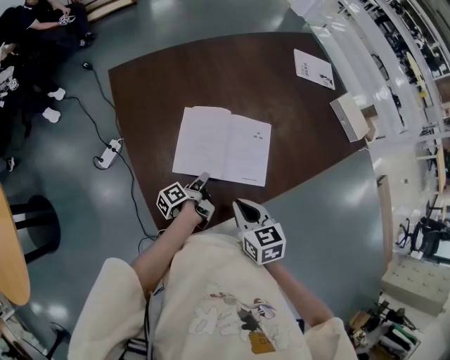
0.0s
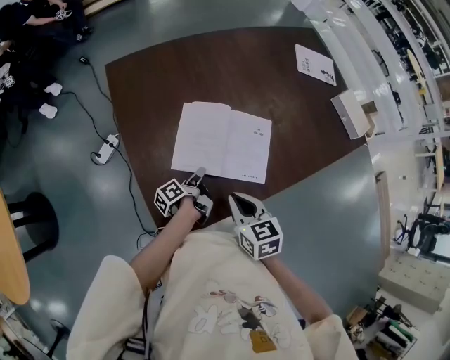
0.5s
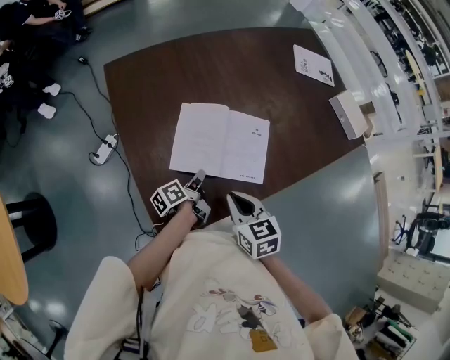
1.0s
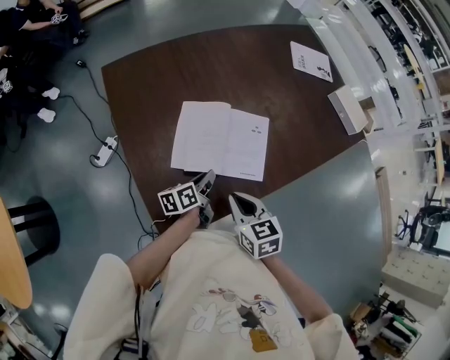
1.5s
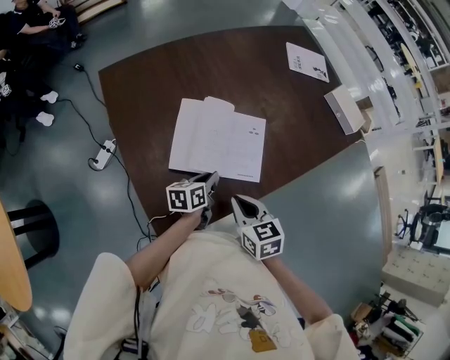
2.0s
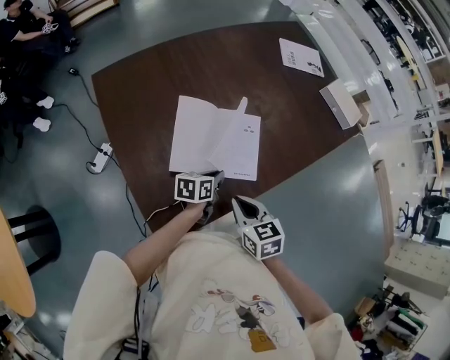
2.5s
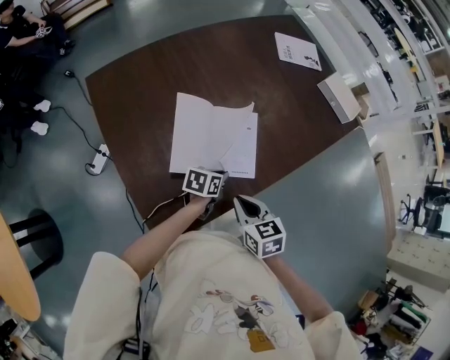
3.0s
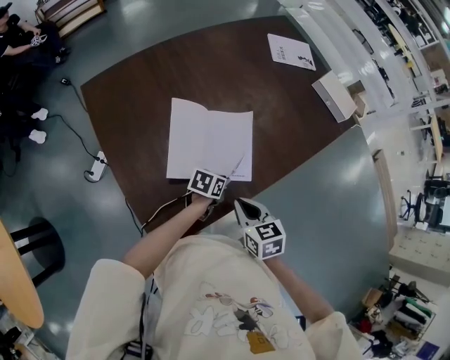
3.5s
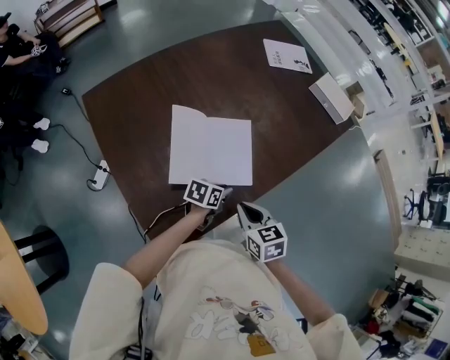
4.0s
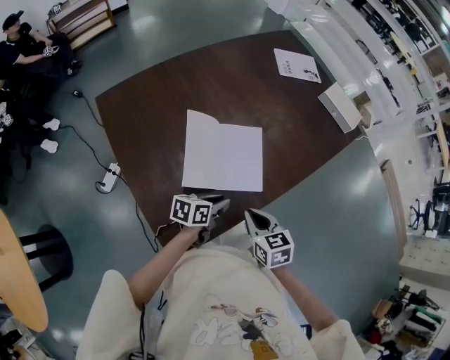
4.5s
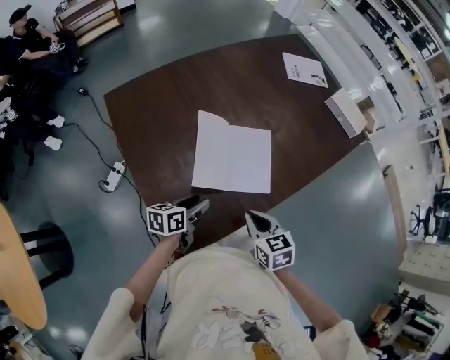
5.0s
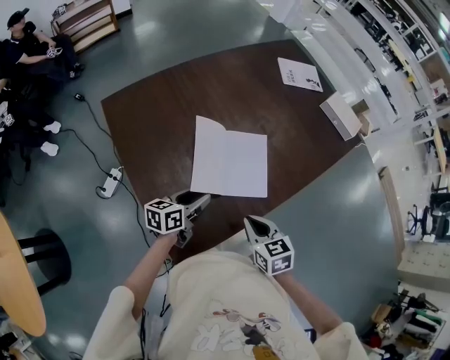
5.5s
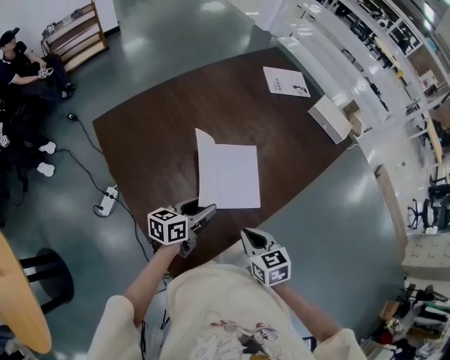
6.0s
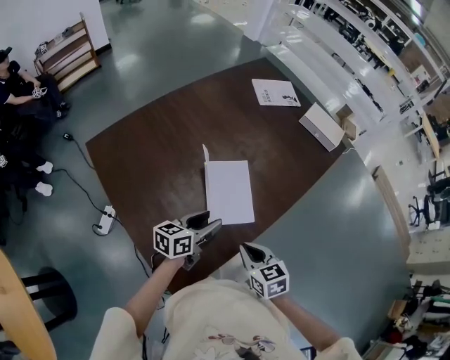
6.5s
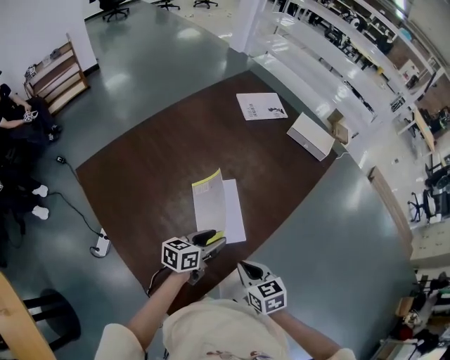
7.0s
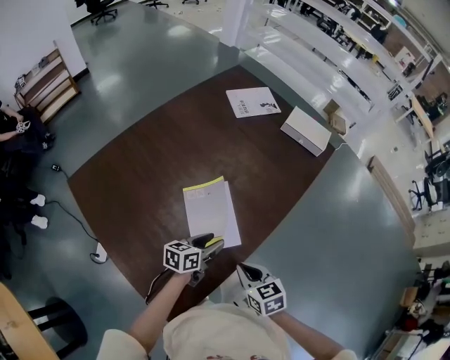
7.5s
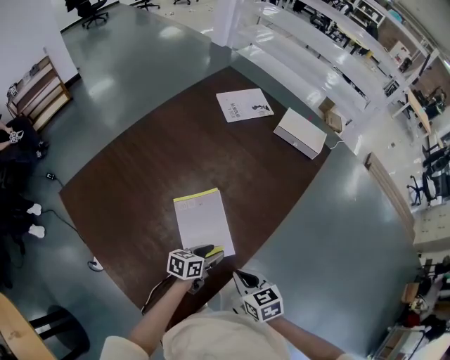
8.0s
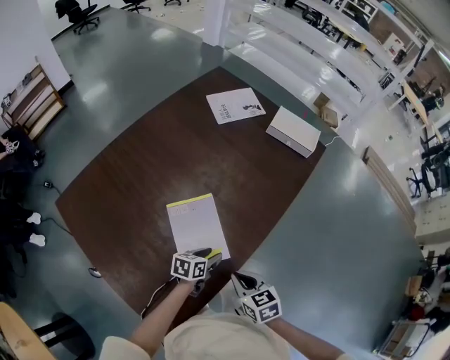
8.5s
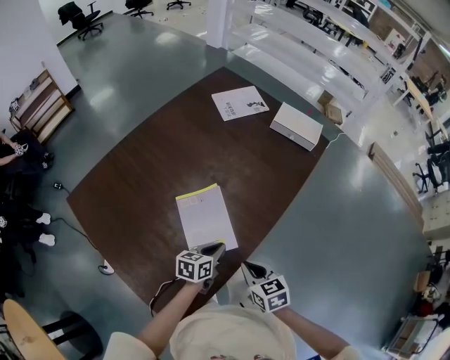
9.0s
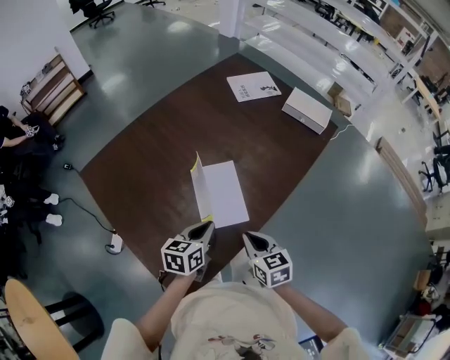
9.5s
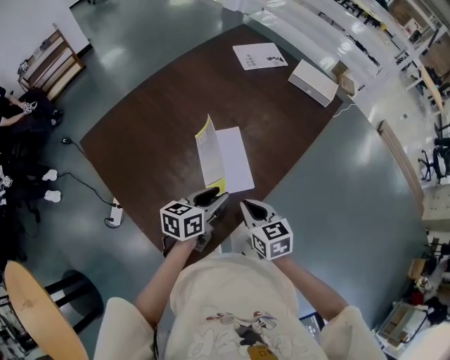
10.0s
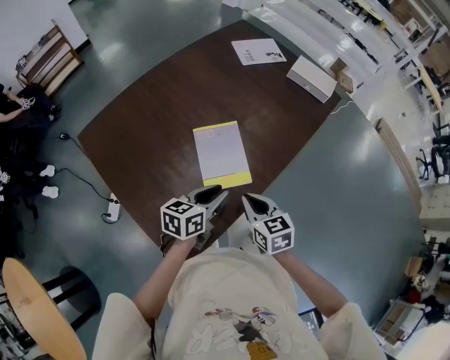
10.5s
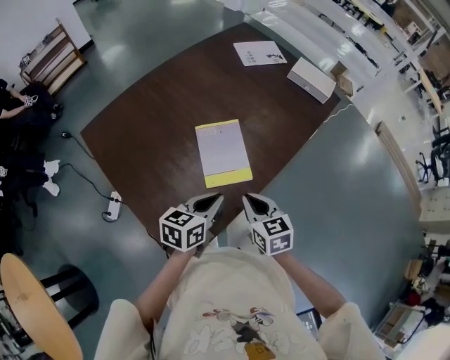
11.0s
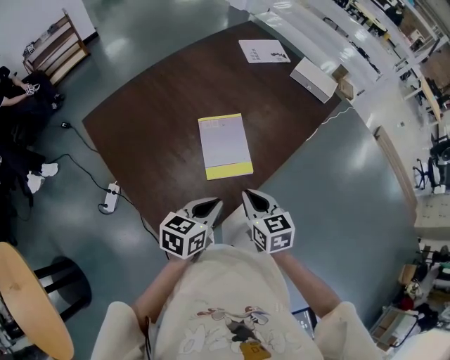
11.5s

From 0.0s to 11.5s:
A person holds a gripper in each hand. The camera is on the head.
From 0.0s to 2.0s: The left gripper moves to the right, roughly 5 cm, and rolls clockwise, seen from behind, by about 50 degrees.
From 2.0s to 4.0s: The right gripper moves to the right, about 5 cm, while the left gripper shifts some 10 cm to the right, and swivels about 30 degrees.
From 4.0s to 6.0s: The left gripper shifts about 15 cm to the left and upward, changes its angle by approximately 30 degrees, and opens up.
From 6.0s to 7.5s: The right gripper goes approximately 5 cm to the right, while the left gripper shifts some 15 cm to the right, forward and downward.
From 7.5s to 9.5s: The left gripper moves upward, approximately 10 cm, and closes its fingers.
From 9.5s to 11.5s: The right gripper goes roughly 5 cm backward, while the left gripper heads backward, covering about 10 cm, and opens and closes again.

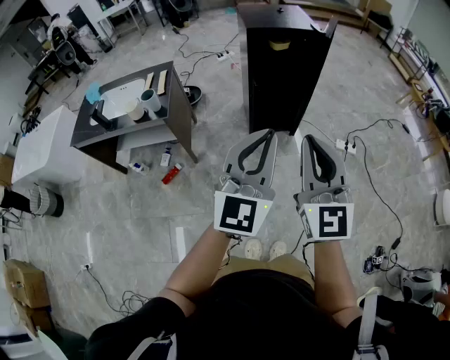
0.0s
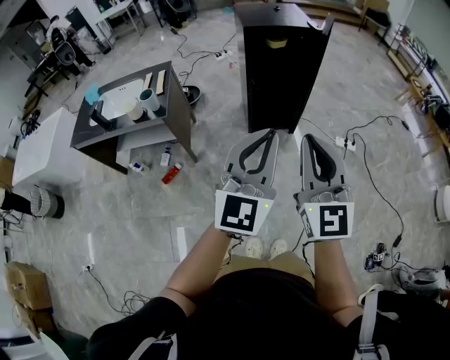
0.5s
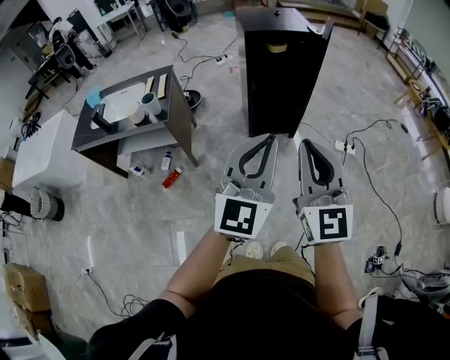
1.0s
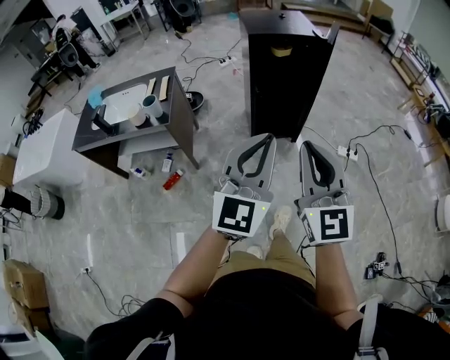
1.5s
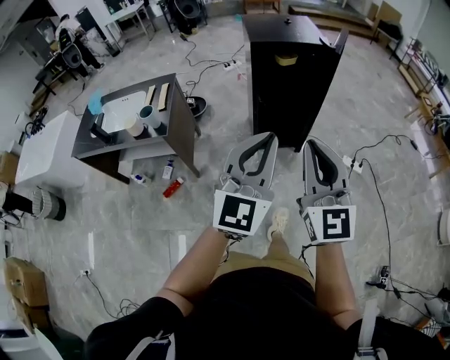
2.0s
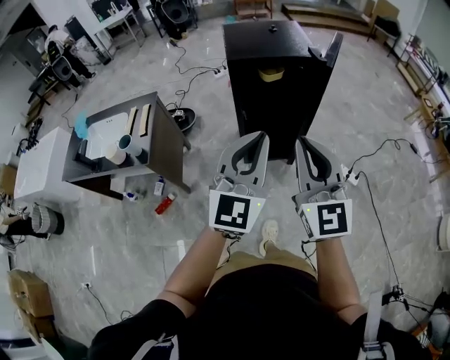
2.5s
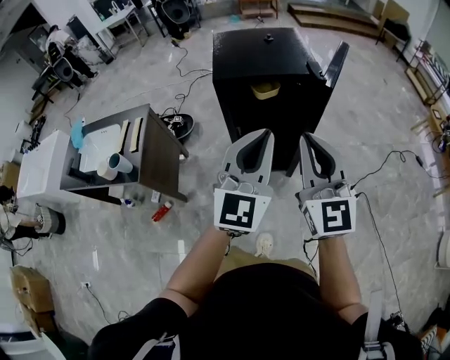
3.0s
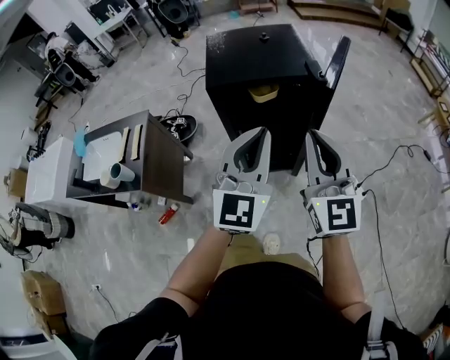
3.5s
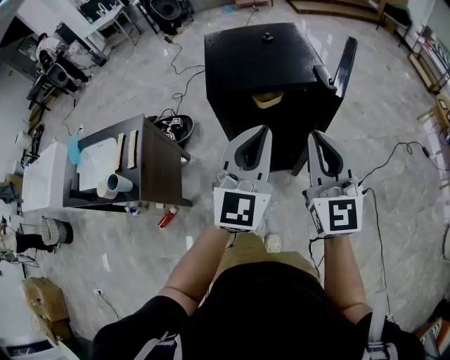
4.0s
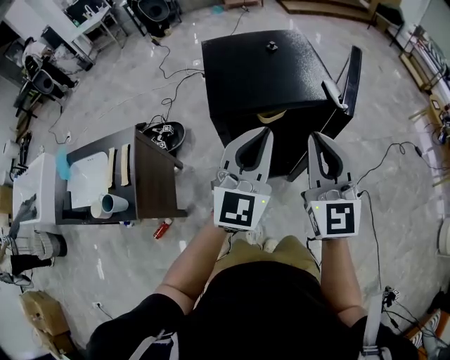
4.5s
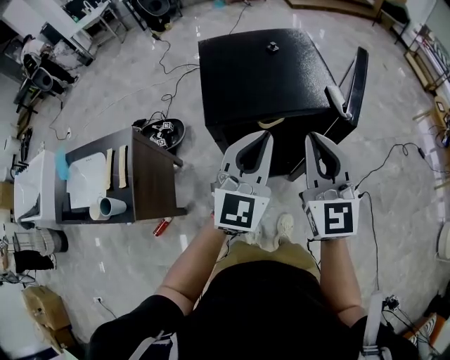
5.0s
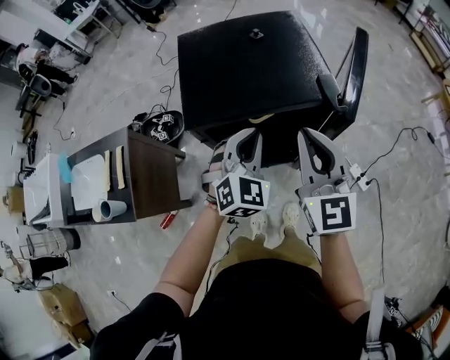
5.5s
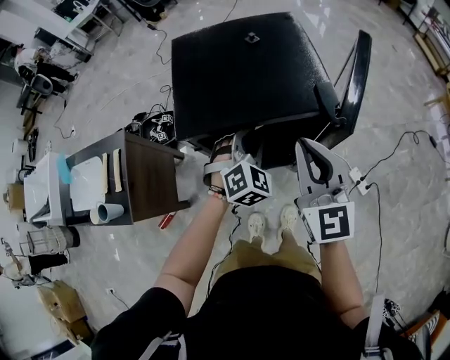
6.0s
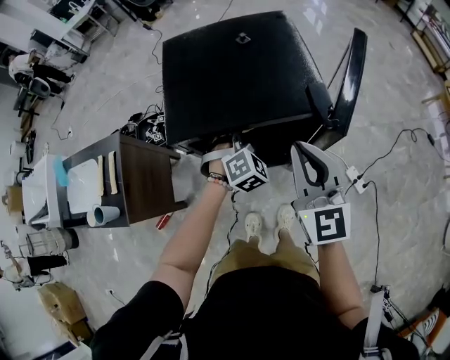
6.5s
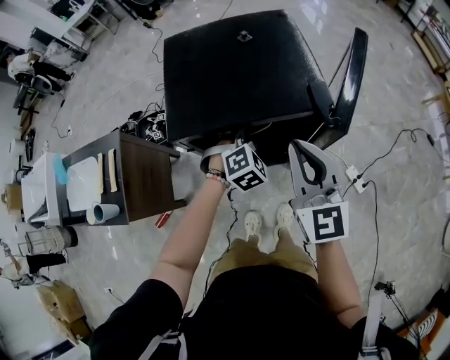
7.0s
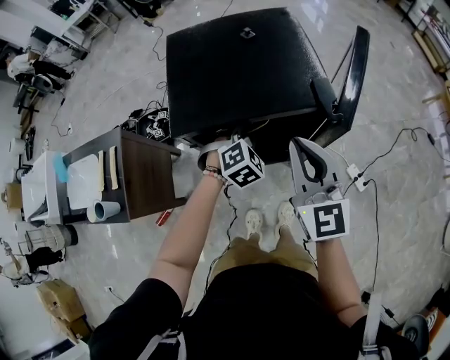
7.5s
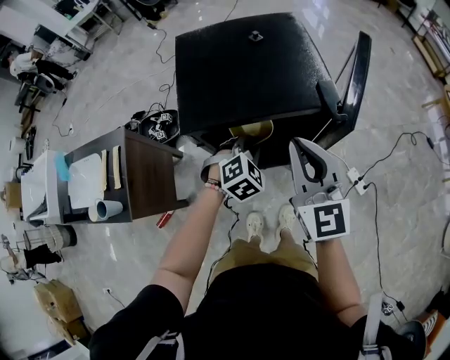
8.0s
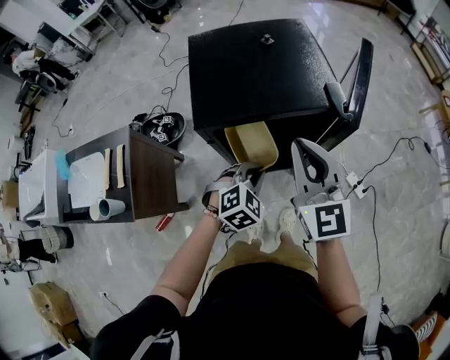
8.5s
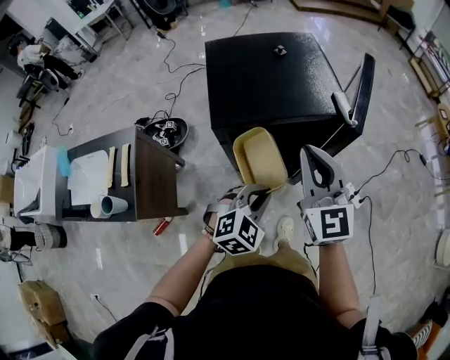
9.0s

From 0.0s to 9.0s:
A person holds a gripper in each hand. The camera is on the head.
From 0.0s to 2.0s: The two grippers go about 10 cm forward.
From 2.0s to 4.5s: Both grippers are carried forward, roughly 60 cm.
From 4.5s to 7.0s: The left gripper heads downward and forward, covering about 30 cm, angles its fingers downward, by some 50 degrees, and opens, then closes again. The right gripper travels forward, downward and to the right by some 15 cm.
From 7.0s to 9.0s: The right gripper is displaced to the left and backward by some 10 cm; the left gripper travels backward by about 20 cm, and turns by approximately 20 degrees.

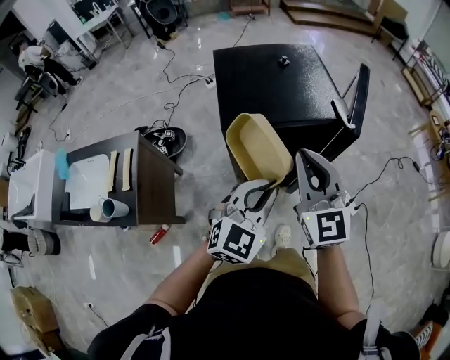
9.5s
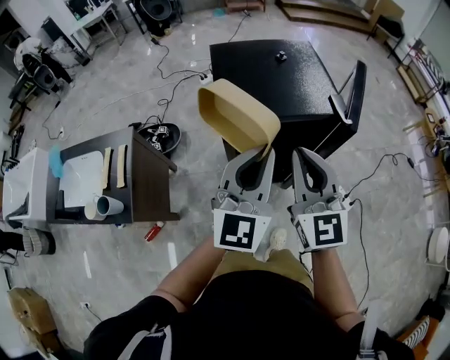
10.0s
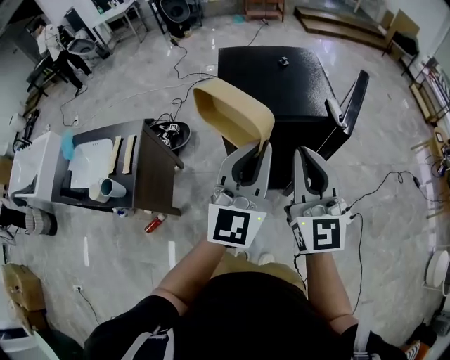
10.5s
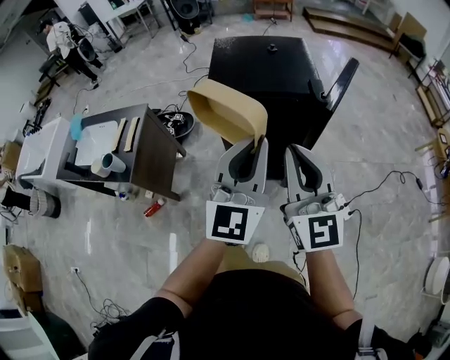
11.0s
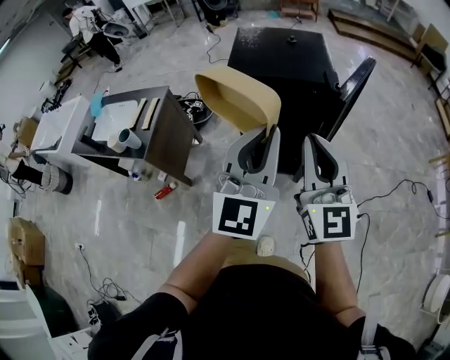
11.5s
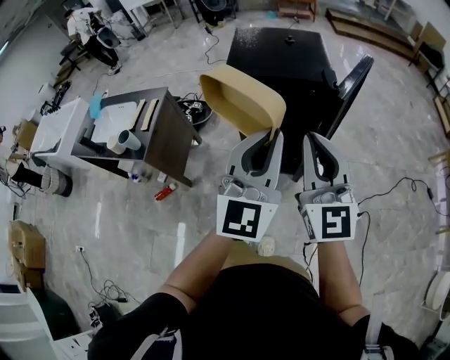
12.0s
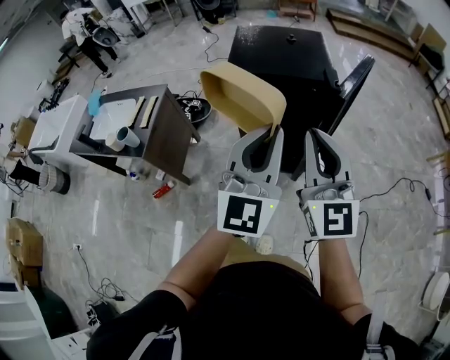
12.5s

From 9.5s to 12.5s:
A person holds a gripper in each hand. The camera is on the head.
From 9.5s to 11.0s: The right gripper moves backward and to the right, approximately 20 cm. The left gripper moves upward, backward and to the right, some 20 cm, and swivels approximately 40 degrees.
From 11.0s to 12.5s: The left gripper goes roughly 5 cm backward.

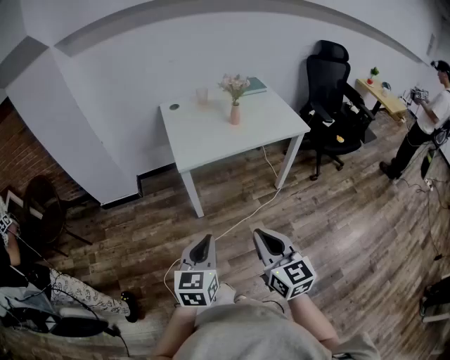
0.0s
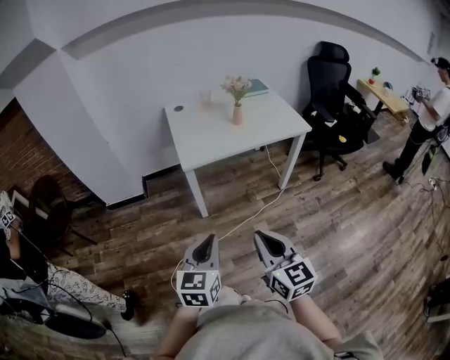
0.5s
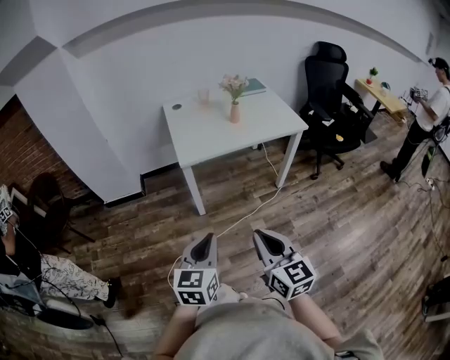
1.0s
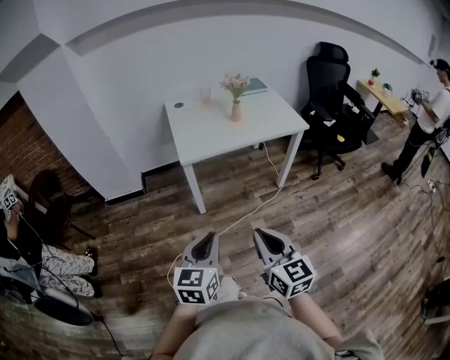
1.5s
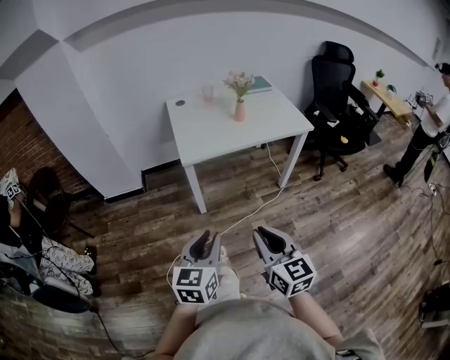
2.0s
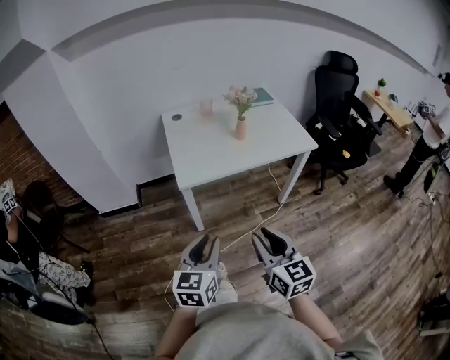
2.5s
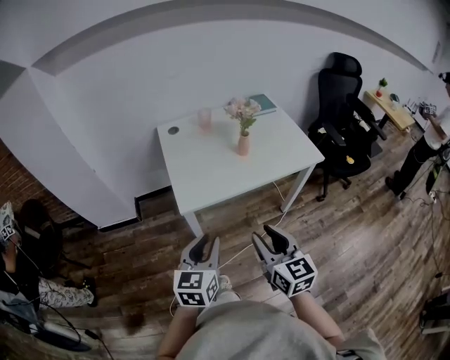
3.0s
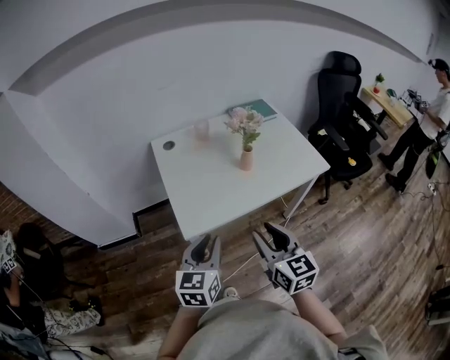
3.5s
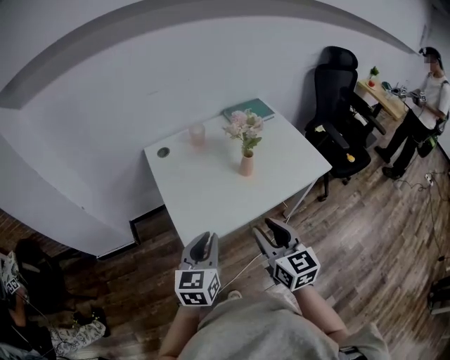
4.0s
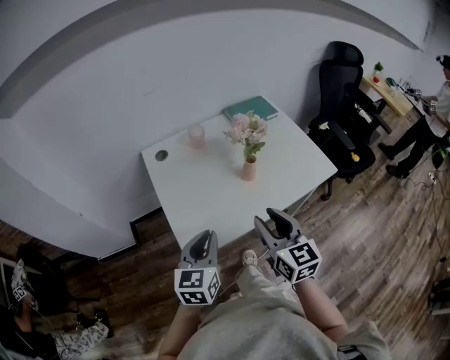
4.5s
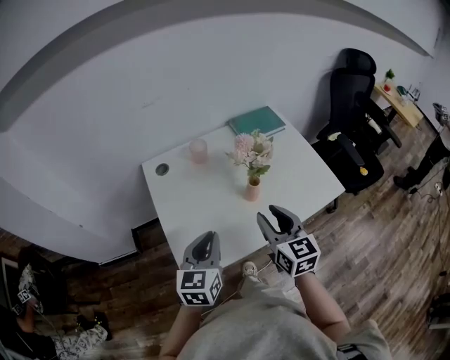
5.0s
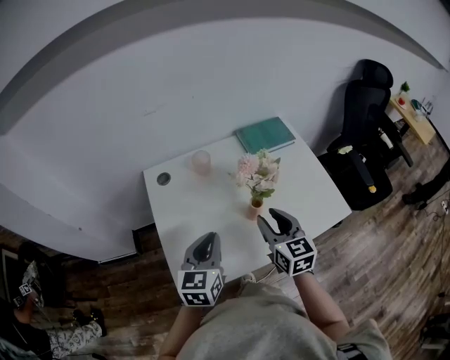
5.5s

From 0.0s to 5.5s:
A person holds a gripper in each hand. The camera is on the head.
From 2.0s to 3.5s: The two grippers go roughly 35 cm forward. The right gripper opens up.
From 3.5s to 5.5s: Both grippers travel together forward, approximately 30 cm.
